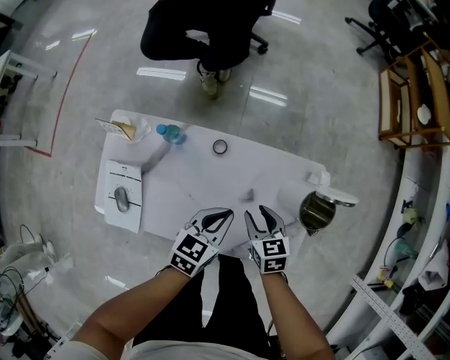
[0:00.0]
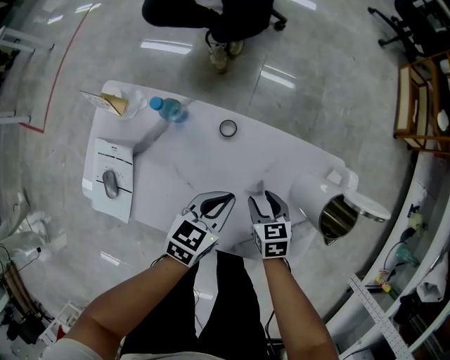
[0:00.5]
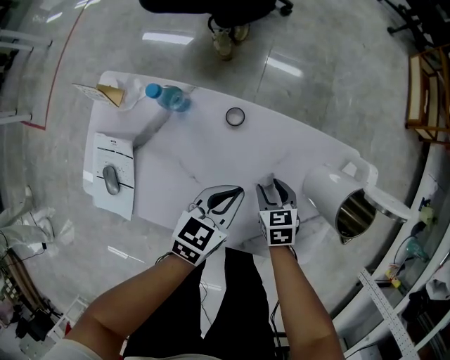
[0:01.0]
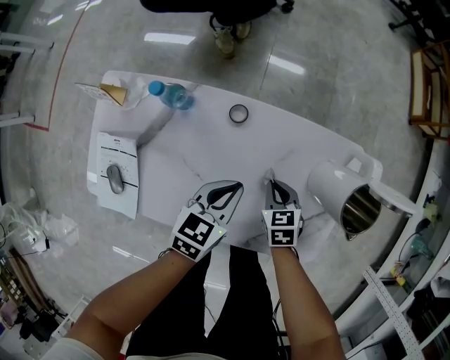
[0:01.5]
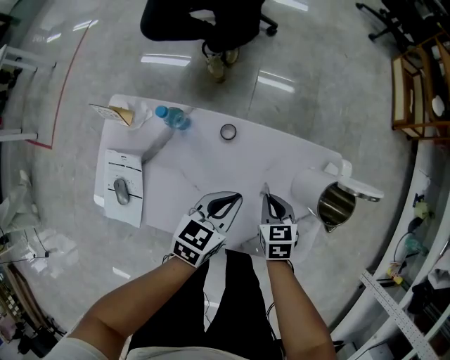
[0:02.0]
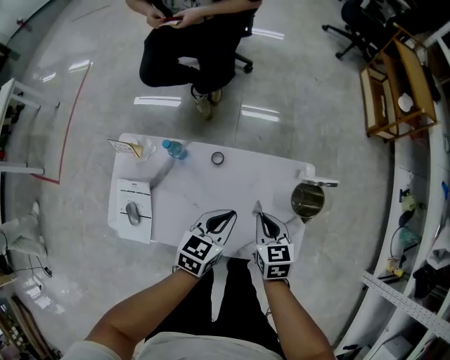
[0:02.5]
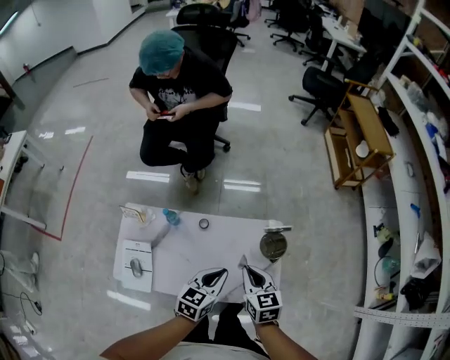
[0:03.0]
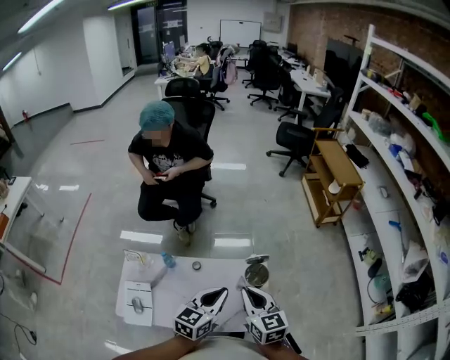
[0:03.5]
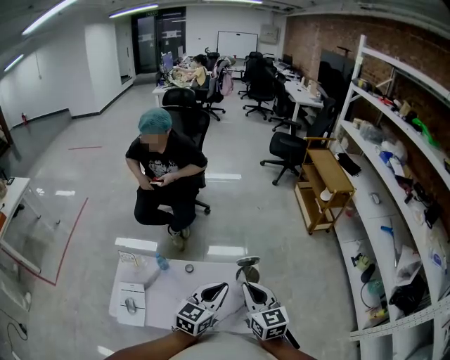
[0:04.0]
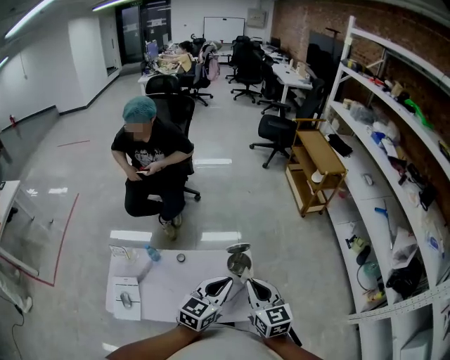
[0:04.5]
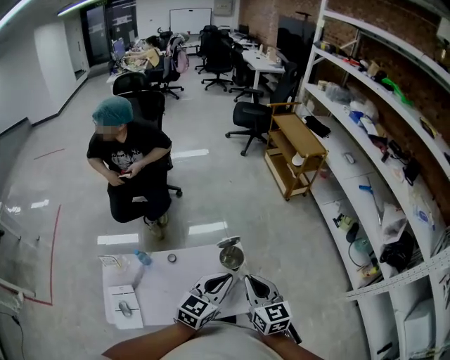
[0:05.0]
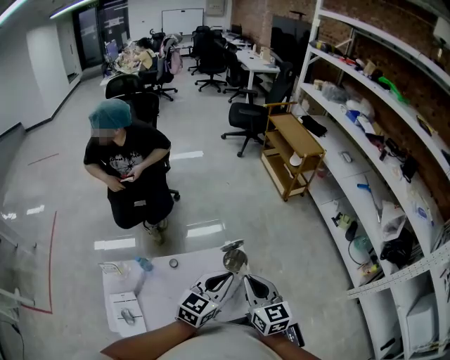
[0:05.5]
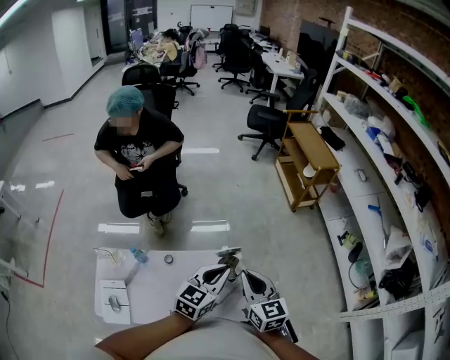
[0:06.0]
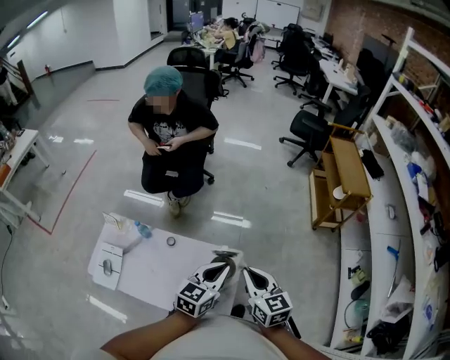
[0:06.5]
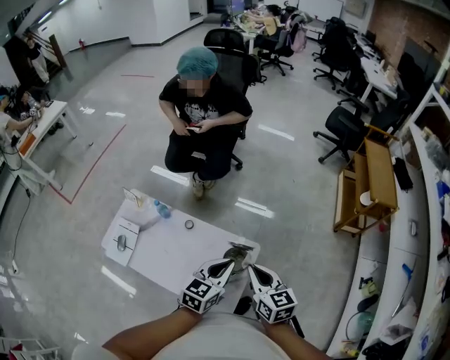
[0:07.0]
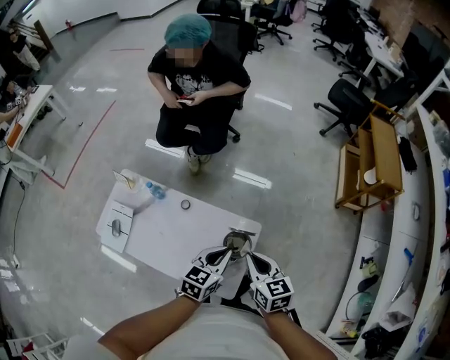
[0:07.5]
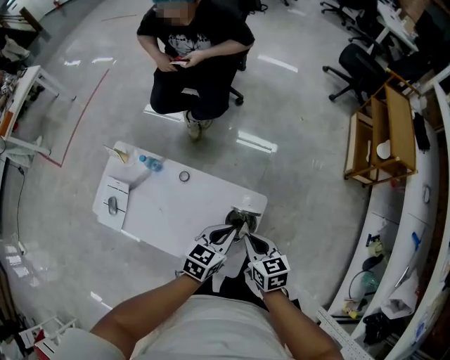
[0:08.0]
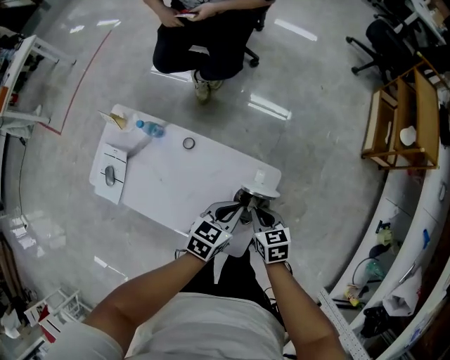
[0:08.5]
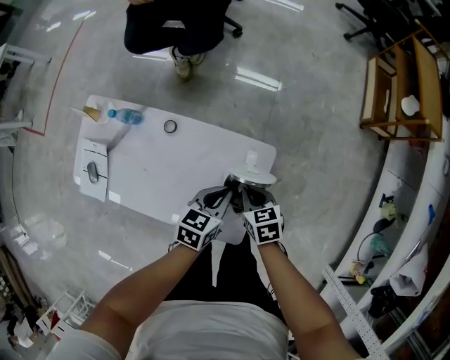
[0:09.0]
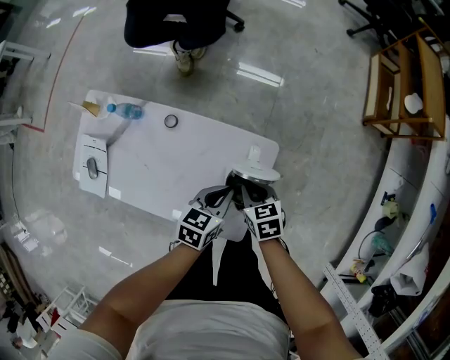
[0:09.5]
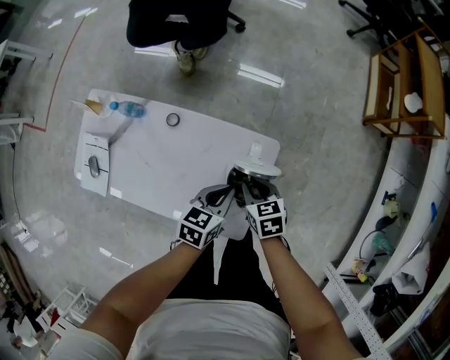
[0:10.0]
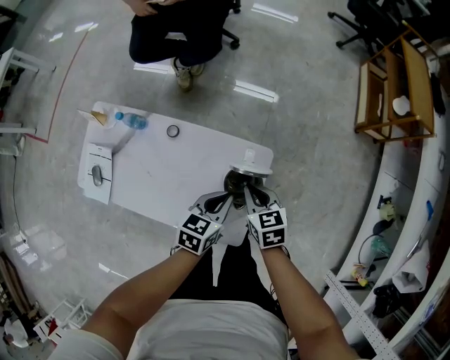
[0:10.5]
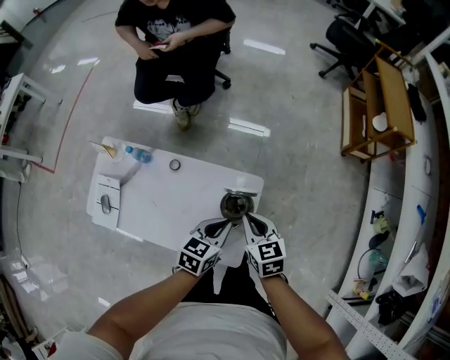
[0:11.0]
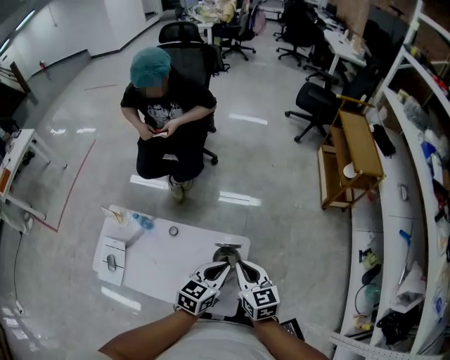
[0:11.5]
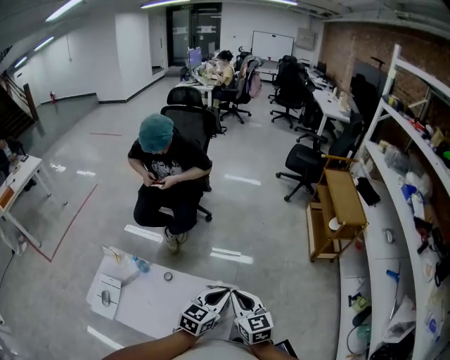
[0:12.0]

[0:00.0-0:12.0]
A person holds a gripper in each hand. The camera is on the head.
0:00.0 to 0:02.0: The right gripper is displaced downward by approximately 5 cm, and closes its fingers, while the left gripper moves about 10 cm downward and comes back.
0:02.0 to 0:04.0: Both grippers move upward, about 50 cm. The left gripper rotates some 30 degrees; the right gripper angles its fingers upward, by roughly 40 degrees.
0:04.0 to 0:06.0: Both grippers move forward and to the right, some 10 cm.
0:06.0 to 0:08.0: The two grippers go about 20 cm downward. The left gripper changes its angle by approximately 30 degrees. Meanwhile the right gripper rotates roughly 40 degrees.
0:08.0 to 0:10.0: The two grippers go roughly 15 cm downward.
0:10.0 to 0:12.0: The two grippers go roughly 35 cm upward. The right gripper angles its fingers upward, by approximately 30 degrees. Meanwhile the left gripper turns by approximately 30 degrees.

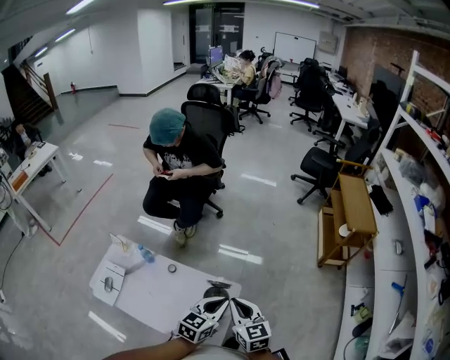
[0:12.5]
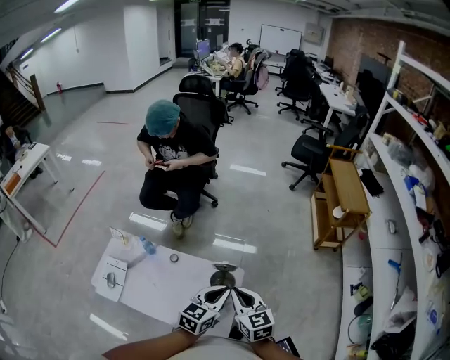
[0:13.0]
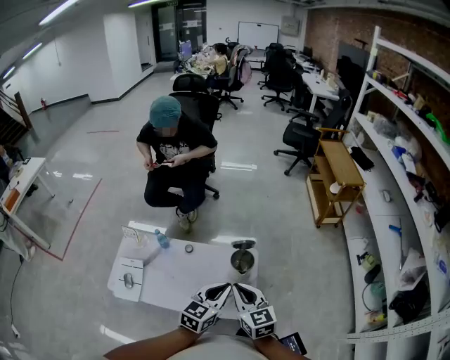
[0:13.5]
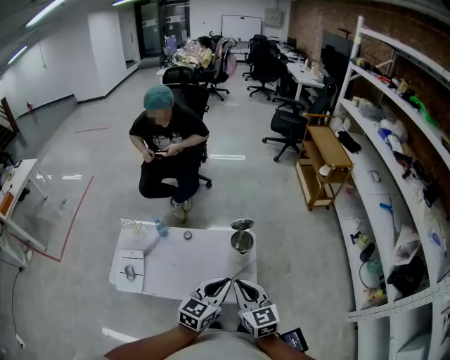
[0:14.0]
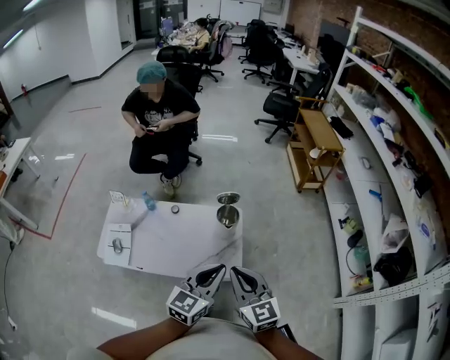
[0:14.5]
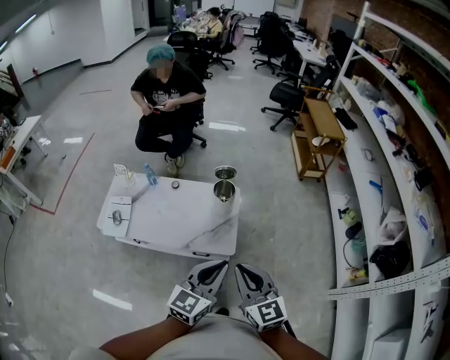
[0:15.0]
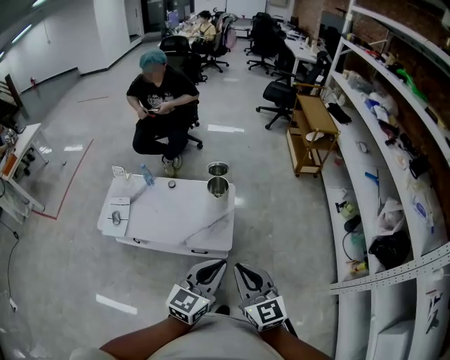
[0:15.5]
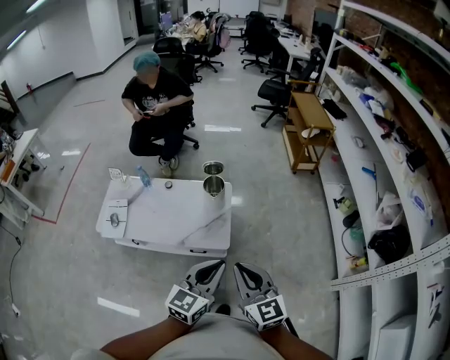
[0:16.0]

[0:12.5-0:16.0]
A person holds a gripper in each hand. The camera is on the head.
0:12.5 to 0:14.5: The grippers both shift backward by approximately 30 cm.
0:14.5 to 0:16.0: Both grippers move backward and to the right, about 20 cm.

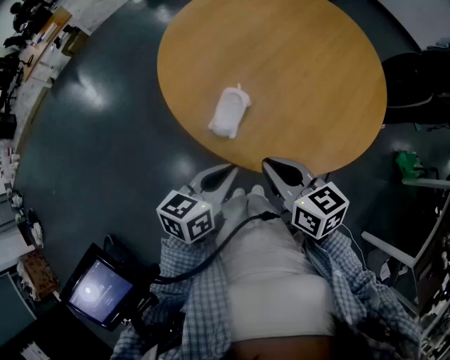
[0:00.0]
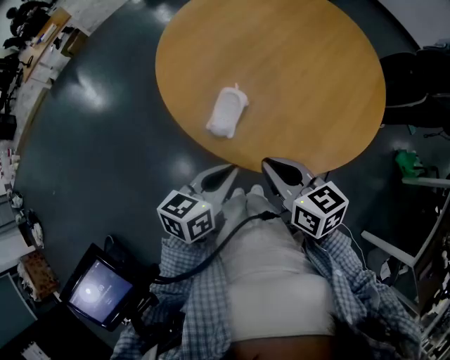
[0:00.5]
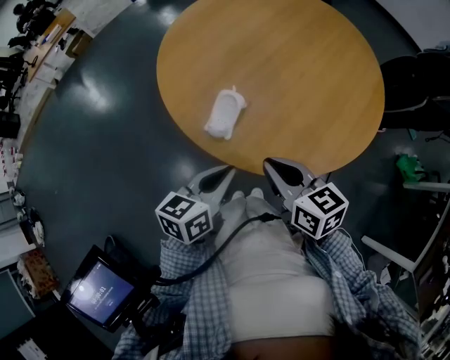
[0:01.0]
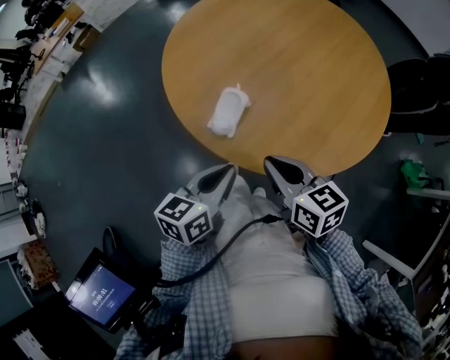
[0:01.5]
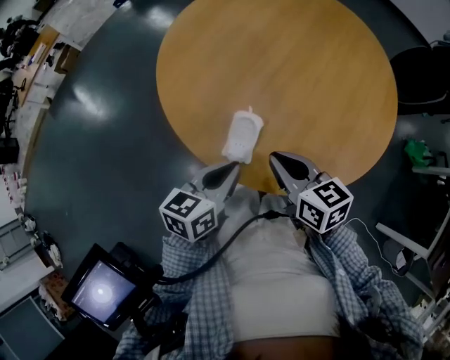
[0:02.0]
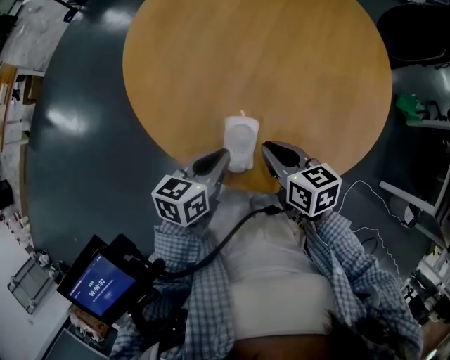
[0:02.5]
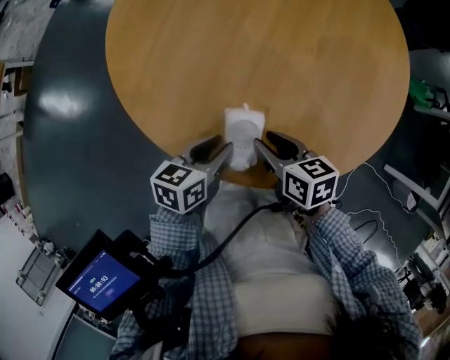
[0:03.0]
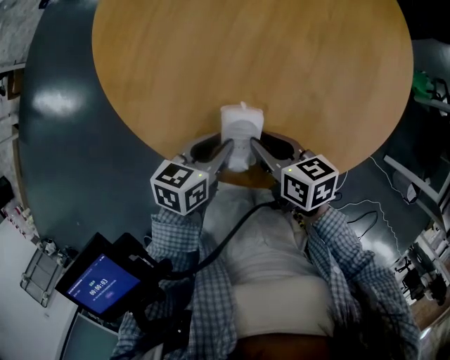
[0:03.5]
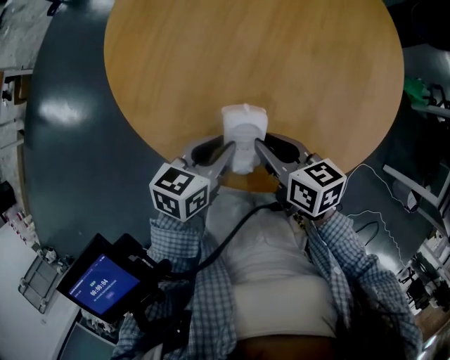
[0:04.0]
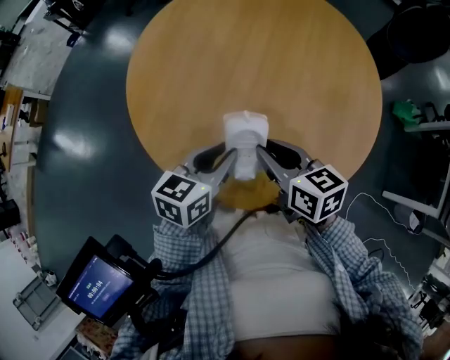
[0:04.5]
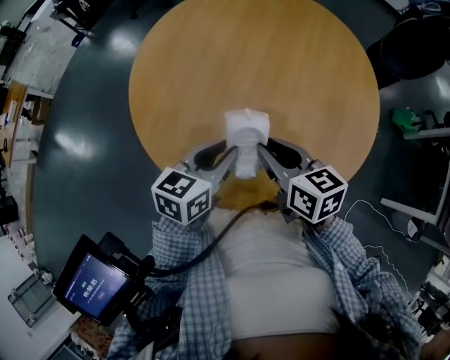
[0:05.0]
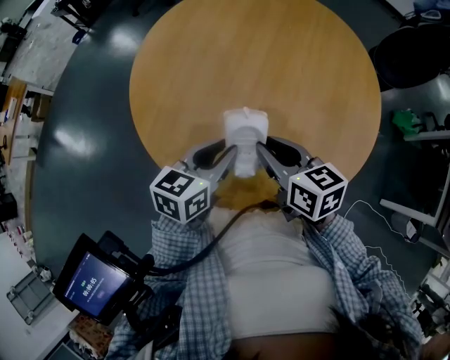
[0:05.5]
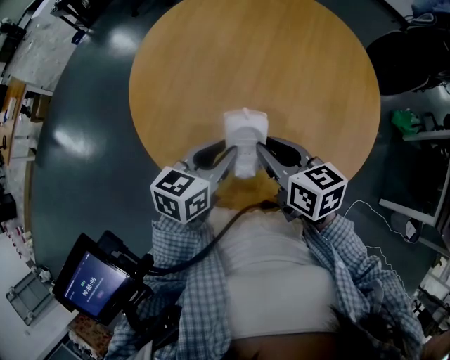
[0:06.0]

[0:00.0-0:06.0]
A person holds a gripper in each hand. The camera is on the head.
0:00.0 to 0:02.0: Both grippers travel together forward, roughly 10 cm.
0:02.0 to 0:04.0: The left gripper heads downward and forward, covering roughly 10 cm, changes its angle by approximately 20 degrees, and opens its fingers, while the right gripper is displaced downward by roughly 10 cm, and changes its angle by approximately 20 degrees.
0:04.0 to 0:06.0: Both grippers travel together upward, approximately 10 cm.

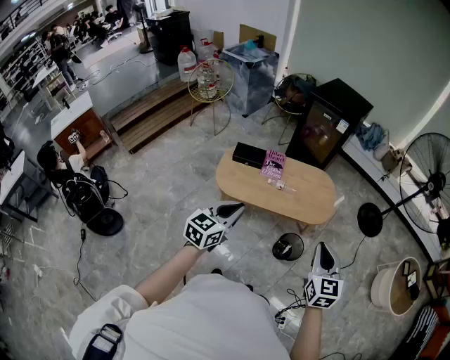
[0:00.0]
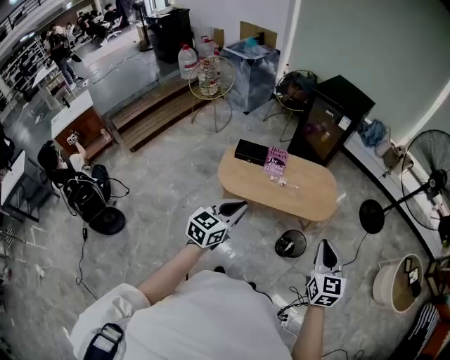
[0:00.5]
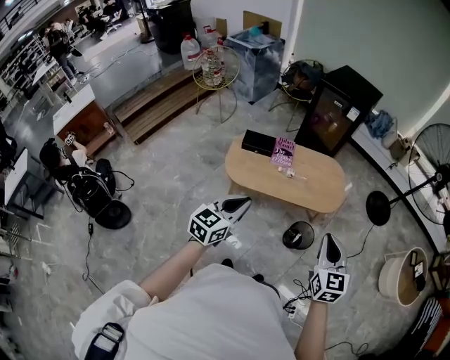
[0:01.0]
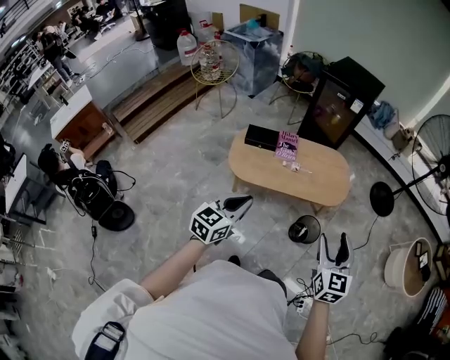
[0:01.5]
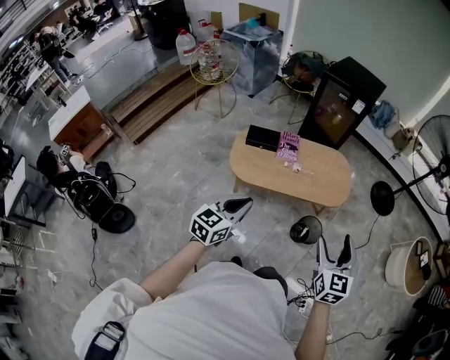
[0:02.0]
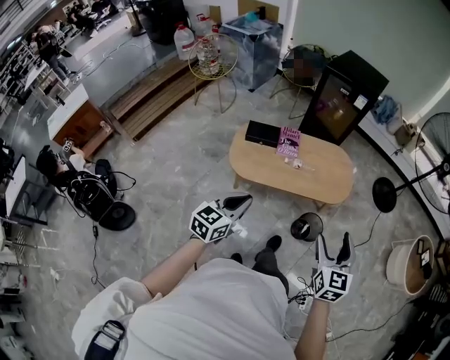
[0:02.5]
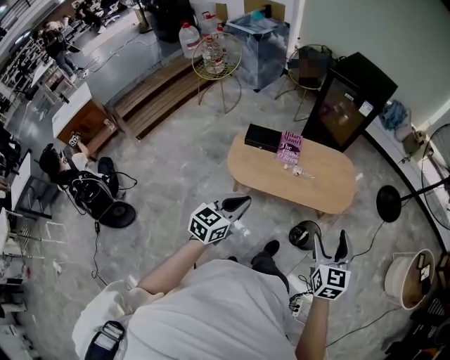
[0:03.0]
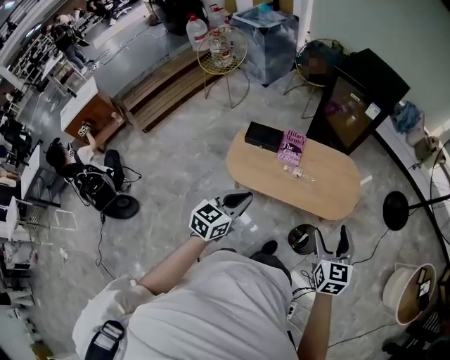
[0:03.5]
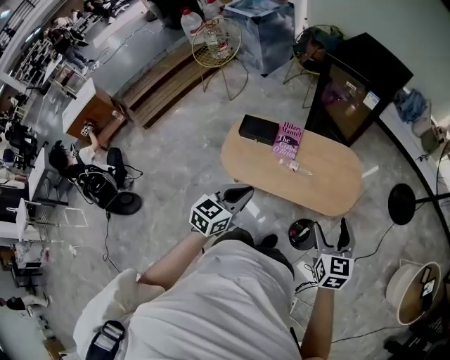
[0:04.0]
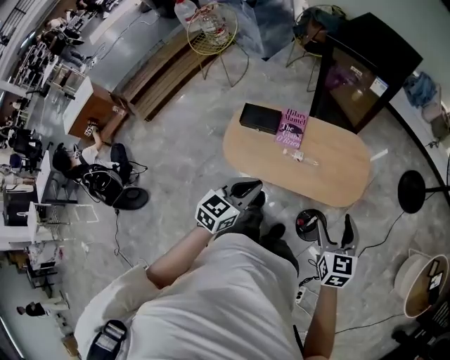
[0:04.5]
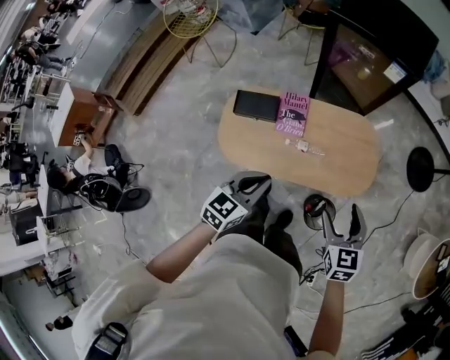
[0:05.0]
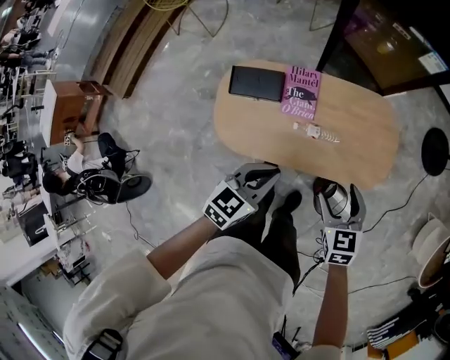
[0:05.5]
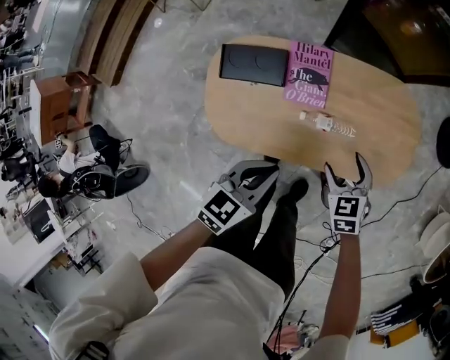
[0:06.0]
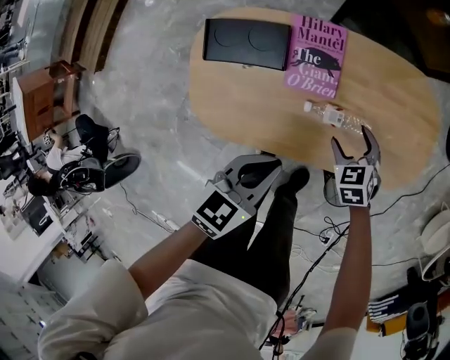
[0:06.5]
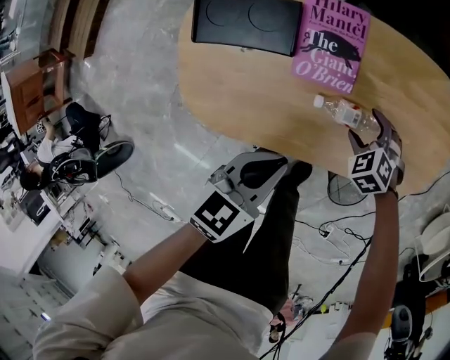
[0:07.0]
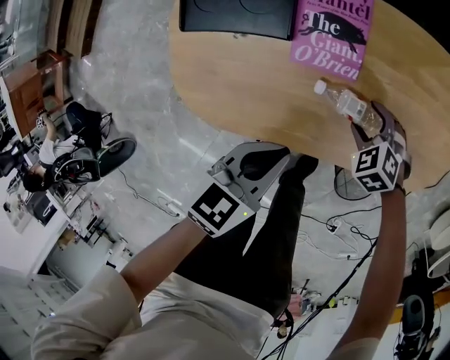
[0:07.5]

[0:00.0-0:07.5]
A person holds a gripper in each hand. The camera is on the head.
0:00.0 to 0:02.0: The two grippers go roughly 5 cm to the left. The right gripper opens.
0:02.0 to 0:04.0: The right gripper heads forward, covering roughly 25 cm. The left gripper heads forward and to the right, covering some 25 cm.
0:04.0 to 0:05.5: The left gripper moves forward and downward, about 25 cm; the right gripper moves downward, forward and to the left, approximately 30 cm.
0:05.5 to 0:07.5: The right gripper goes about 40 cm downward, and turns by approximately 50 degrees, while the left gripper is displaced downward by approximately 30 cm.
